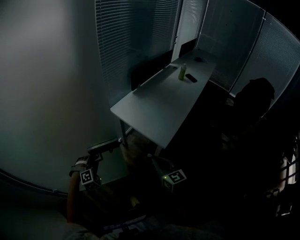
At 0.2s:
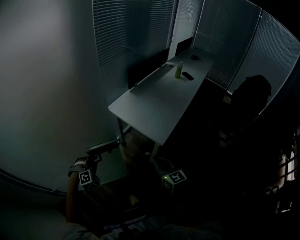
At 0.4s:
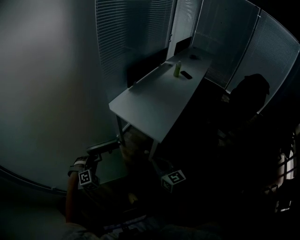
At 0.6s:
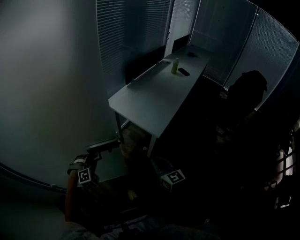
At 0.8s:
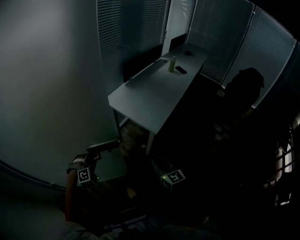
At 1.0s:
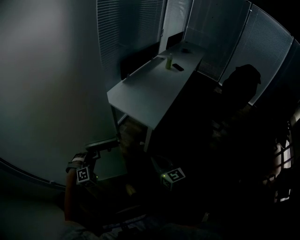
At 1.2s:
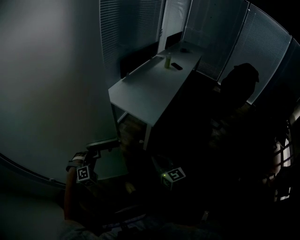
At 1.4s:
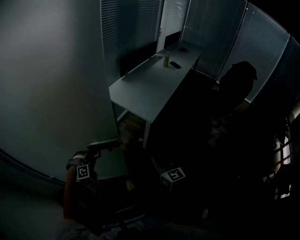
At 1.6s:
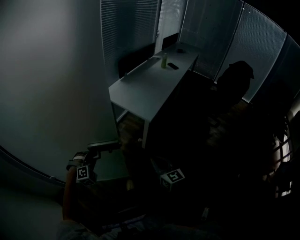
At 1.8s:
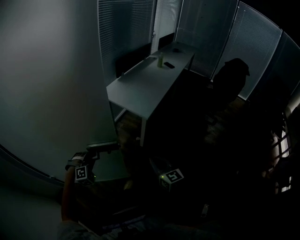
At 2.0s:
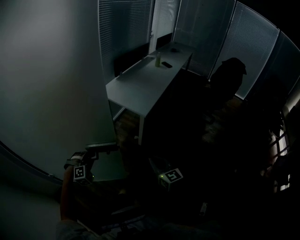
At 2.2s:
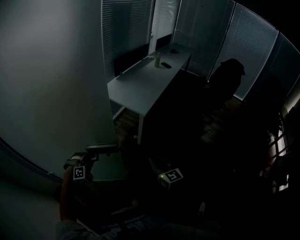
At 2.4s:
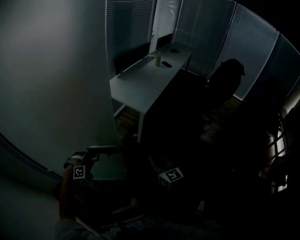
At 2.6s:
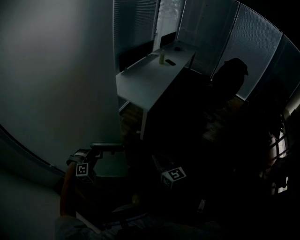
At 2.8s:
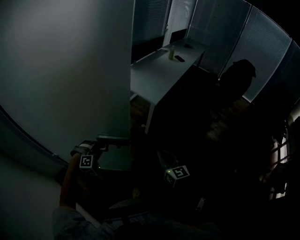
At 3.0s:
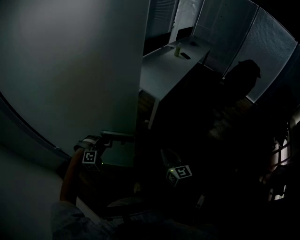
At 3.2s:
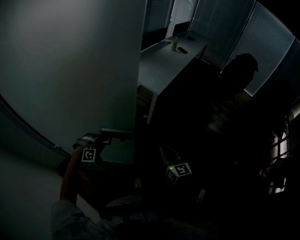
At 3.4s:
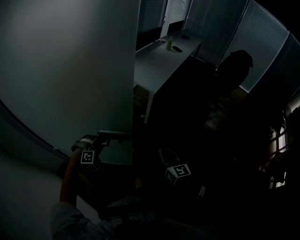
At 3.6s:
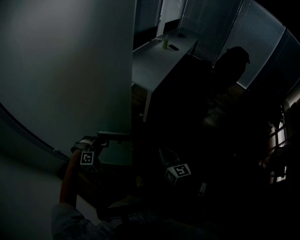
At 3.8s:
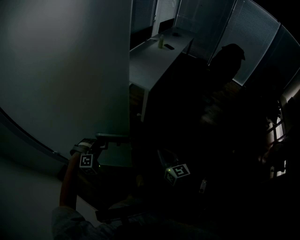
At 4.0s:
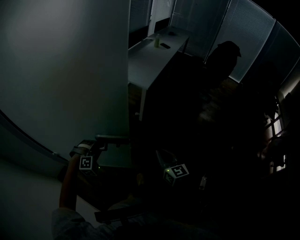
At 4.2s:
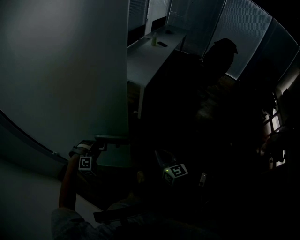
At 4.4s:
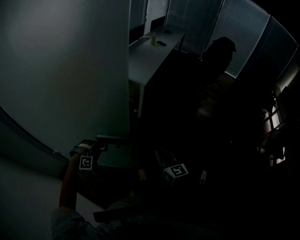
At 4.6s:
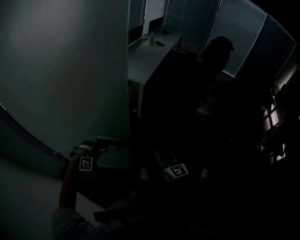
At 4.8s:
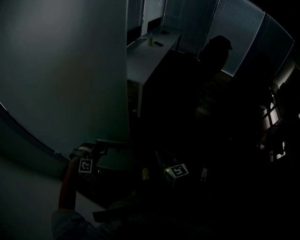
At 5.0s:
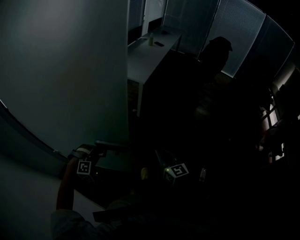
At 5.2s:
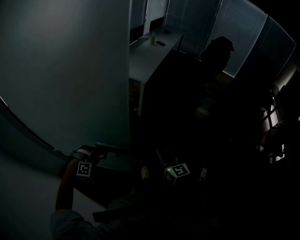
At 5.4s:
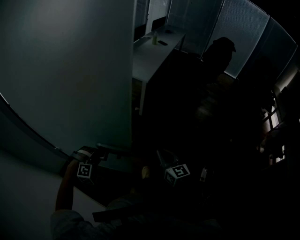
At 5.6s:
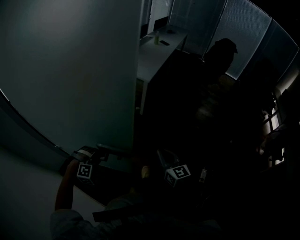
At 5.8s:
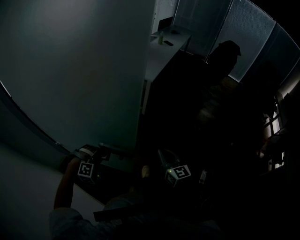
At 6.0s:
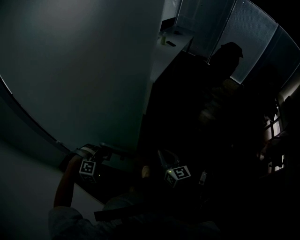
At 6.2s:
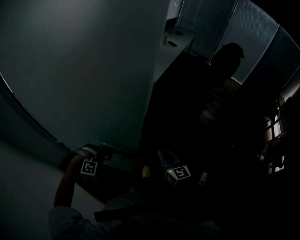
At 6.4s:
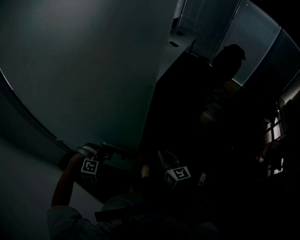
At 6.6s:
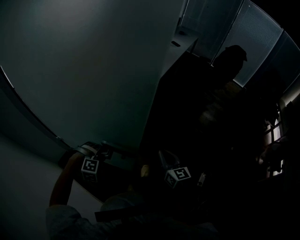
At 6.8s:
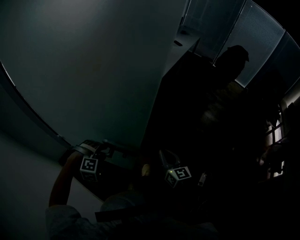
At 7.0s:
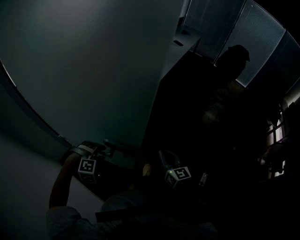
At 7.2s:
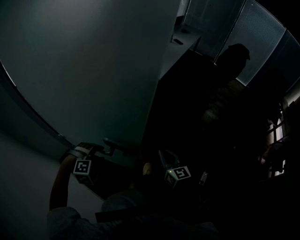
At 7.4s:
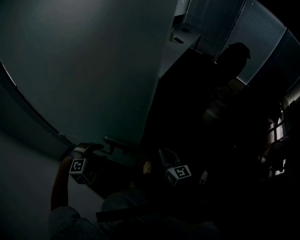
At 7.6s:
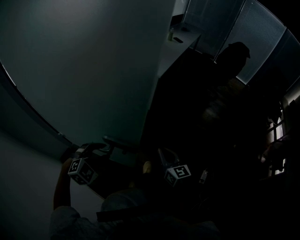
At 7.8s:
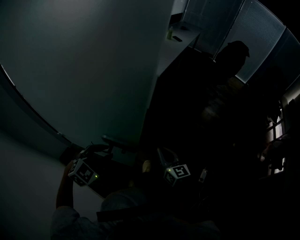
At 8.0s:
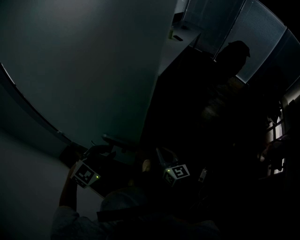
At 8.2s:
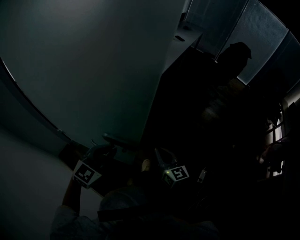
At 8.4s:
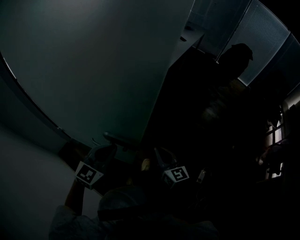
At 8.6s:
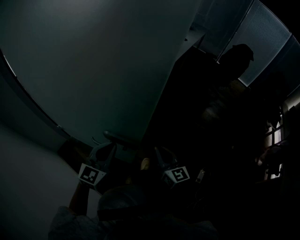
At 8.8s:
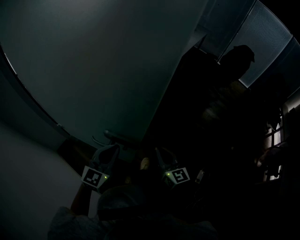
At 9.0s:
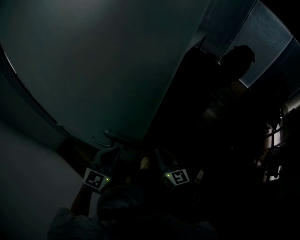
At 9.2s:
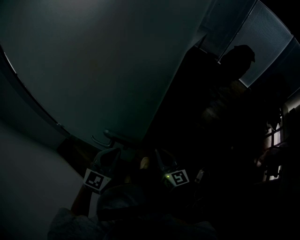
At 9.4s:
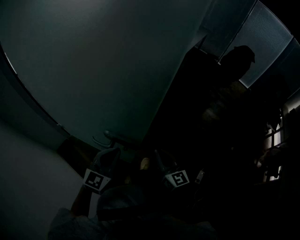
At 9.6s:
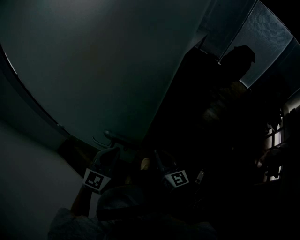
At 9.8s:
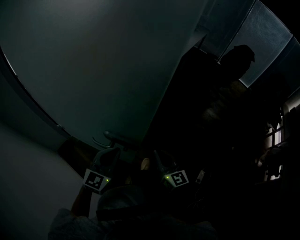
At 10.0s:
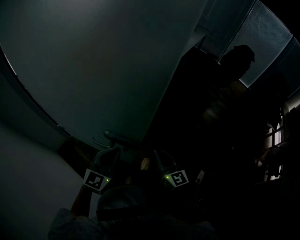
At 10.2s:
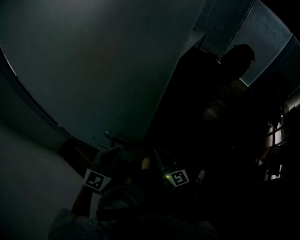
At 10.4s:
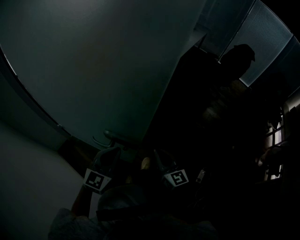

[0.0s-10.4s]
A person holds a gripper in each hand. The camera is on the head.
0.0s to 1.4s: The two grippers go about 20 cm backward.
1.4s to 3.0s: The grippers both shift backward by about 20 cm.
3.0s to 4.4s: Both grippers move backward, about 15 cm.
4.4s to 6.0s: The left gripper is displaced backward by some 10 cm.
6.0s to 7.4s: The left gripper goes some 5 cm upward, turns by about 20 degrees, and opens its fingers.
7.4s to 9.0s: The left gripper goes about 10 cm upward and to the right, tips its fingers upward by approximately 40 degrees, and closes up.
9.0s to 10.4s: Neither gripper changes place.

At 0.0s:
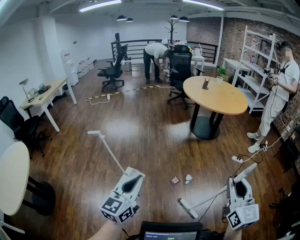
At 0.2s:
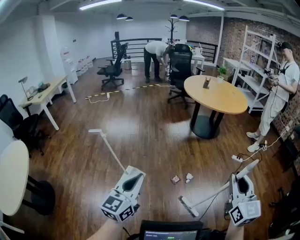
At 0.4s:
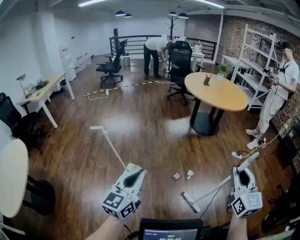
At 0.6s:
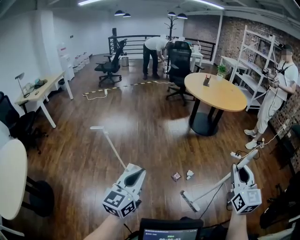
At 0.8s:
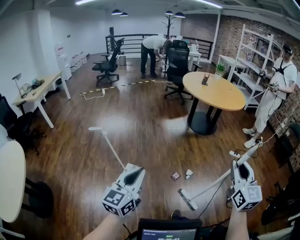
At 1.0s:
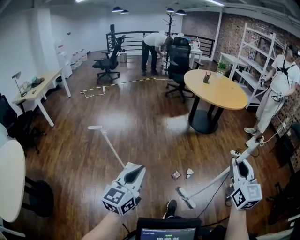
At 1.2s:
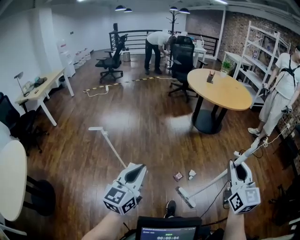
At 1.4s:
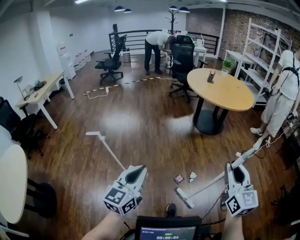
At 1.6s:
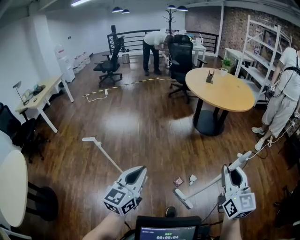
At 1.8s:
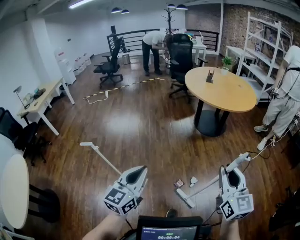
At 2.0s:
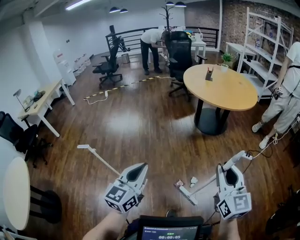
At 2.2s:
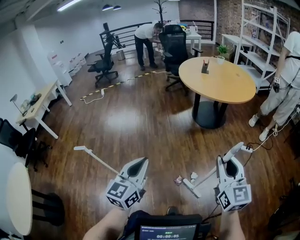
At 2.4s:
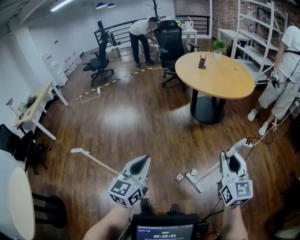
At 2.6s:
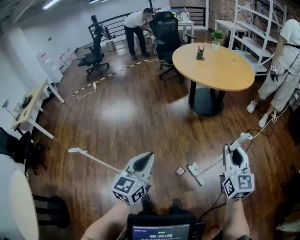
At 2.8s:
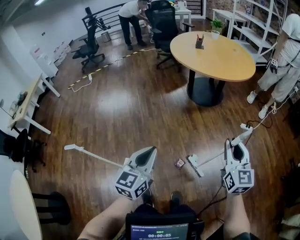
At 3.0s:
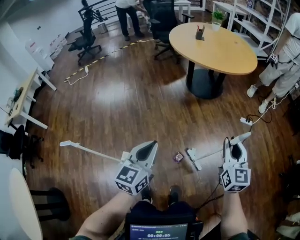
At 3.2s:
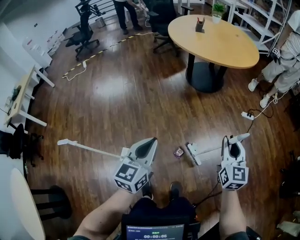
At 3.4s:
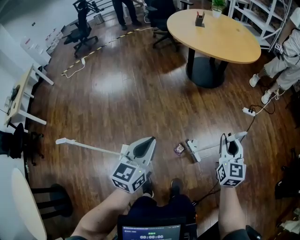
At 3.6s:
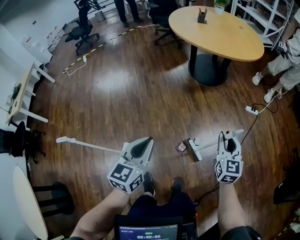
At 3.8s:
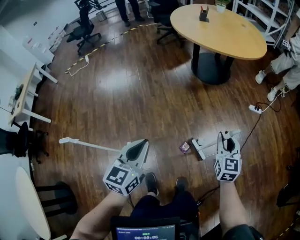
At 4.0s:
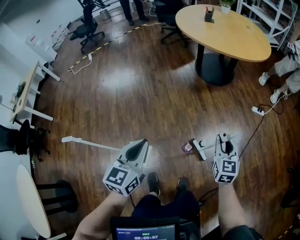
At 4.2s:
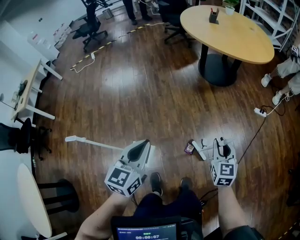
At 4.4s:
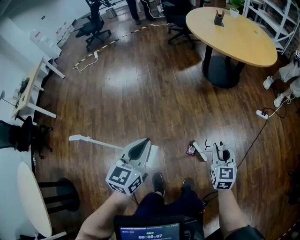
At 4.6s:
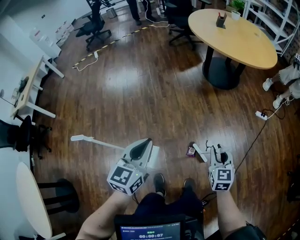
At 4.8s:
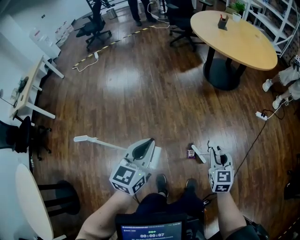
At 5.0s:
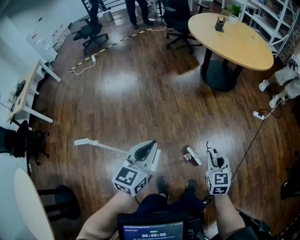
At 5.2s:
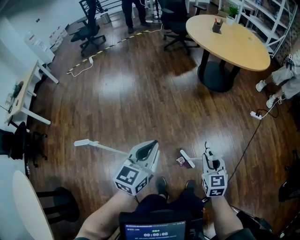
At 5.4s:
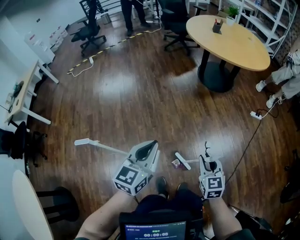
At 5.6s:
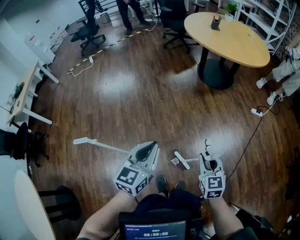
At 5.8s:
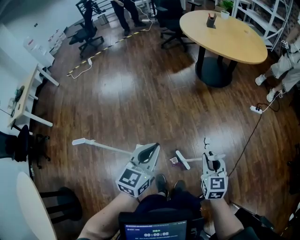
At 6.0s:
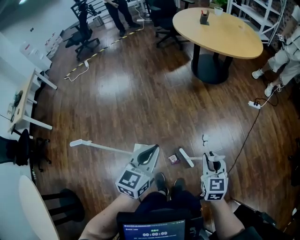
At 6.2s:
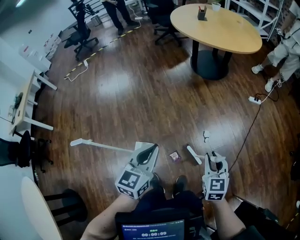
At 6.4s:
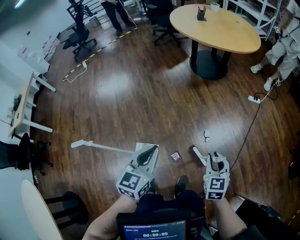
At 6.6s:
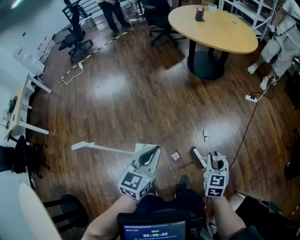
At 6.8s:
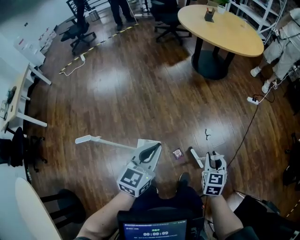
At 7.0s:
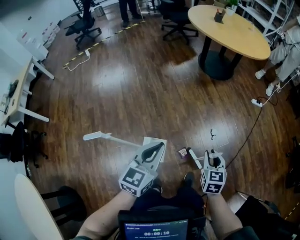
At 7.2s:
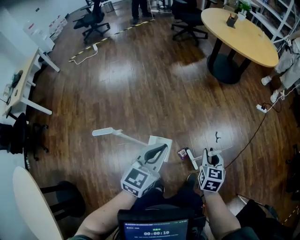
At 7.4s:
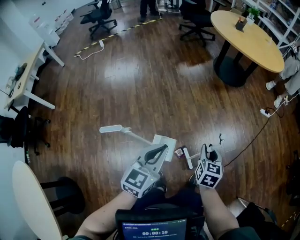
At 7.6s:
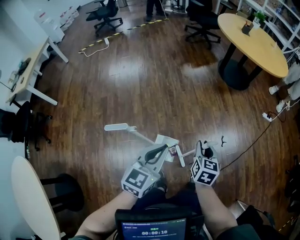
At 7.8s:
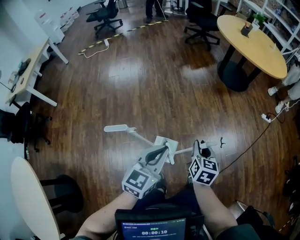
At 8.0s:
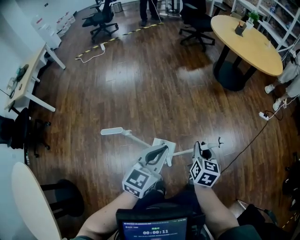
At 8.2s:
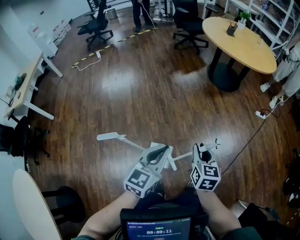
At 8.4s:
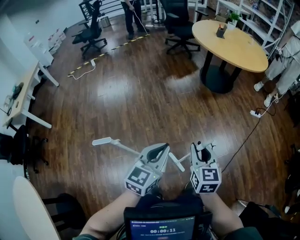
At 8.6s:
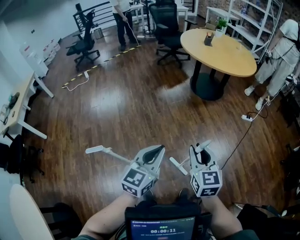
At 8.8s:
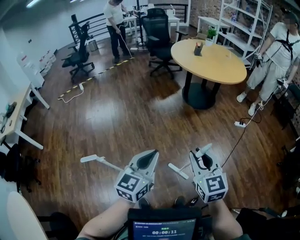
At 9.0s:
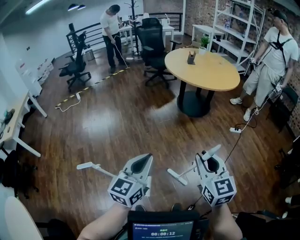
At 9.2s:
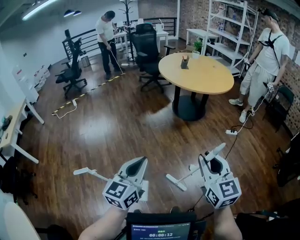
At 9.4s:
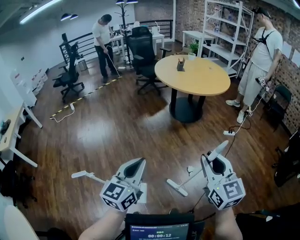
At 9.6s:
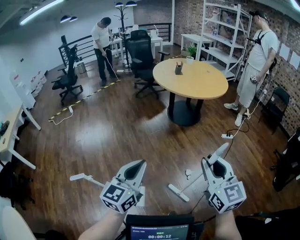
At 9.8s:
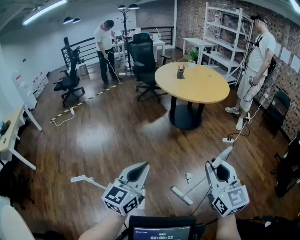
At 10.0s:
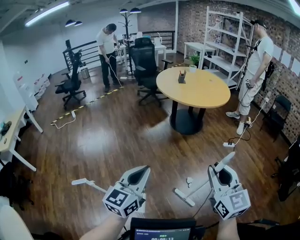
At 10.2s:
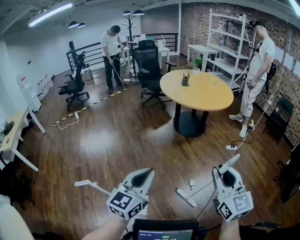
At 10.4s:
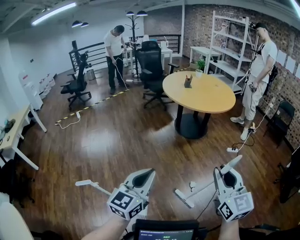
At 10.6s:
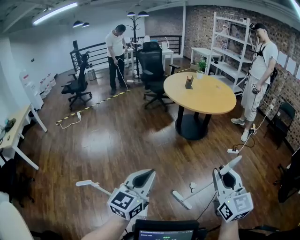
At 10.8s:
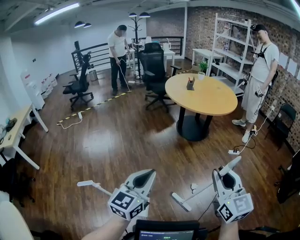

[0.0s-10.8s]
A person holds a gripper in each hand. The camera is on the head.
0.0s to 1.6s: Both grippers travel together forward, approximately 25 cm.
1.6s to 3.0s: The grippers both shift forward and downward by some 40 cm.
3.0s to 4.6s: The left gripper travels to the left by about 20 cm. Meanwhile the right gripper travels to the left and downward by roughly 30 cm, and turns by approximately 20 degrees.
4.6s to 6.2s: The left gripper heads to the right and backward, covering roughly 10 cm; the right gripper heads backward, covering some 10 cm, and reaches roughly 15 cm to the left, then returns.
6.2s to 7.8s: The pair of grippers is taken to the left, approximately 50 cm.
7.8s to 9.2s: Both grippers travel together to the right and upward, roughly 50 cm. The right gripper rotates roughly 30 degrees.
9.2s to 10.8s: Both grippers move upward, about 5 cm.

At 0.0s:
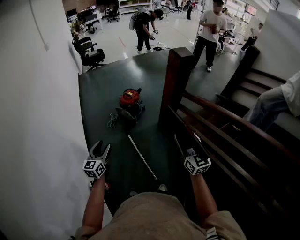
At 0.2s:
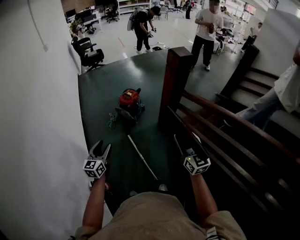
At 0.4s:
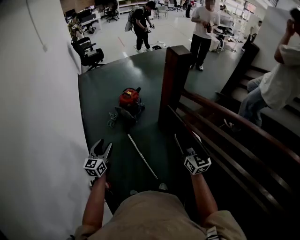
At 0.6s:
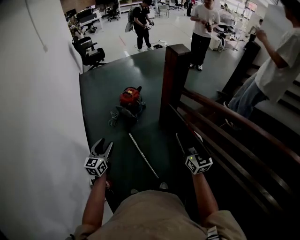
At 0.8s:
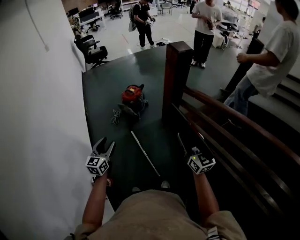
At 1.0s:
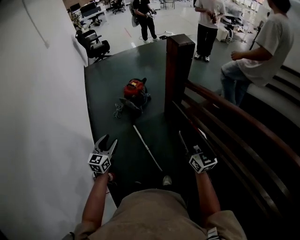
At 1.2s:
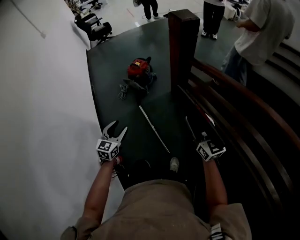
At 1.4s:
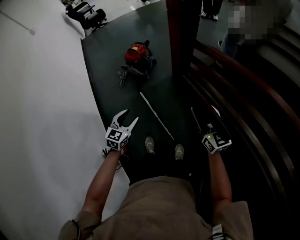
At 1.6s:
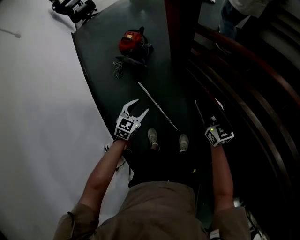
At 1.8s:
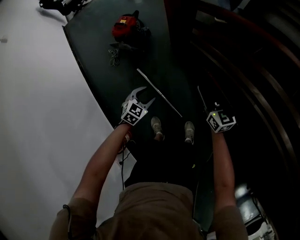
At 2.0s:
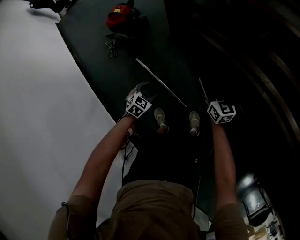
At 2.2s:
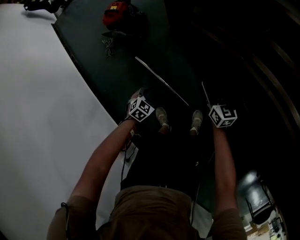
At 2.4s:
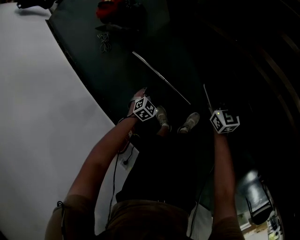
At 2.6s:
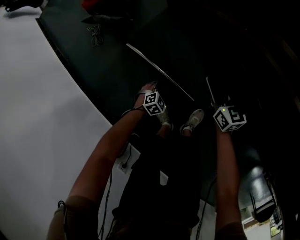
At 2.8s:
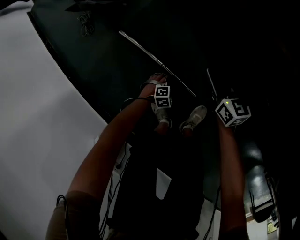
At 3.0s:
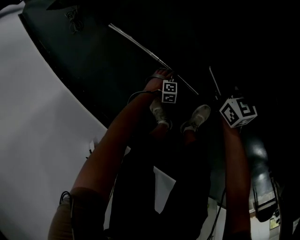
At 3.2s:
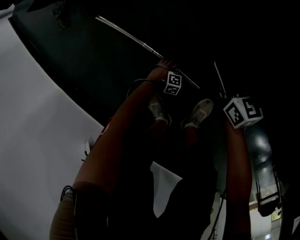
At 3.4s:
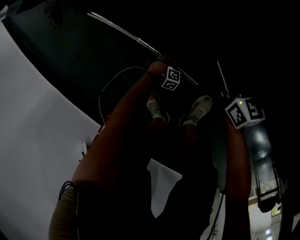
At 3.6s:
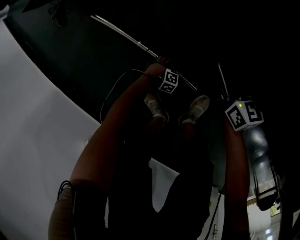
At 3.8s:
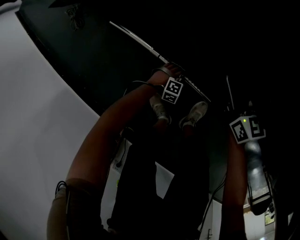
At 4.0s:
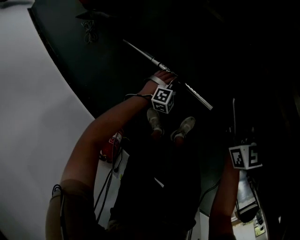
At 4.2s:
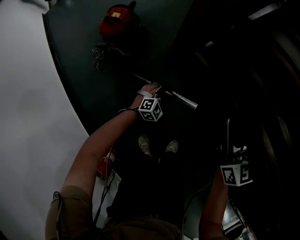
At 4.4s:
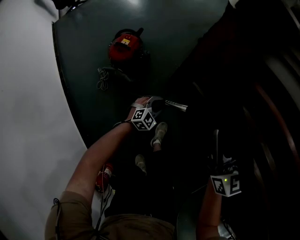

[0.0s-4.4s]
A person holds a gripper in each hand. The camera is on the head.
0.0s to 1.4s: The left gripper is displaced to the right and downward by approximately 20 cm, and rotates roughly 30 degrees. The right gripper goes approximately 10 cm to the right and downward.
1.4s to 3.0s: The grippers both shift downward by some 90 cm. The left gripper tips its fingers downward by approximately 50 degrees, while the right gripper changes its angle by some 40 degrees.
3.0s to 4.4s: Both grippers move upward, about 60 cm. The left gripper points its fingers approximately 40 degrees further upward; the right gripper swivels roughly 40 degrees.
